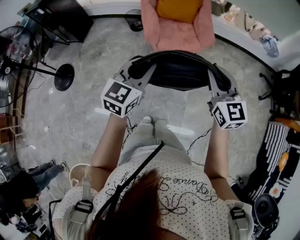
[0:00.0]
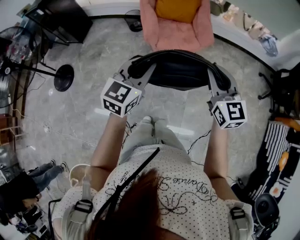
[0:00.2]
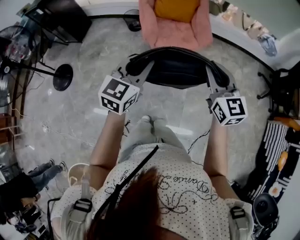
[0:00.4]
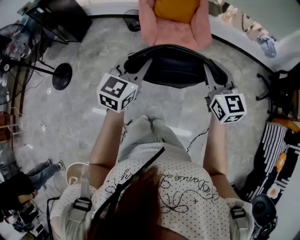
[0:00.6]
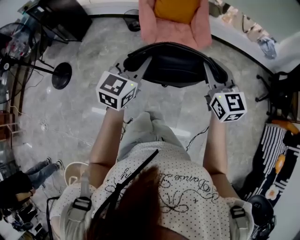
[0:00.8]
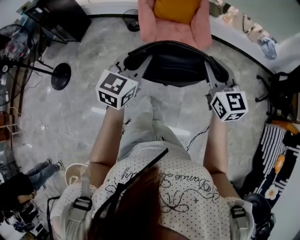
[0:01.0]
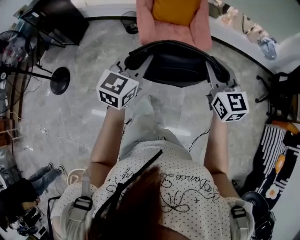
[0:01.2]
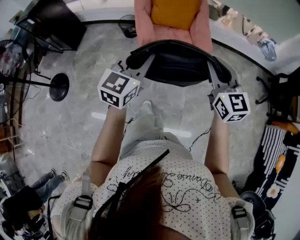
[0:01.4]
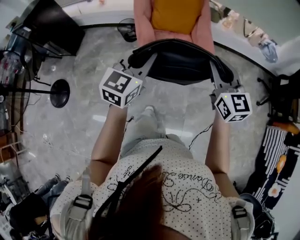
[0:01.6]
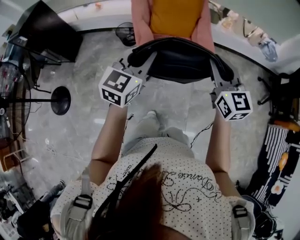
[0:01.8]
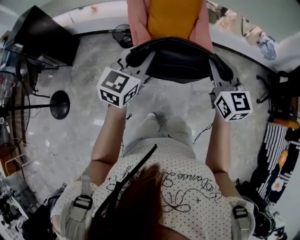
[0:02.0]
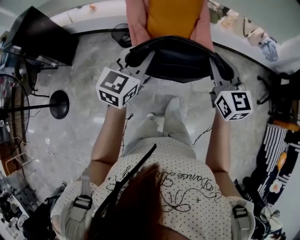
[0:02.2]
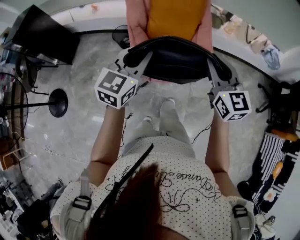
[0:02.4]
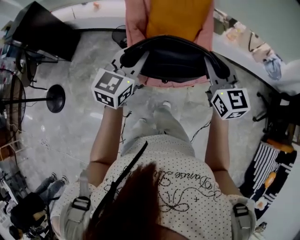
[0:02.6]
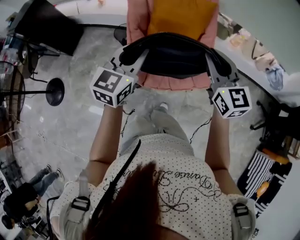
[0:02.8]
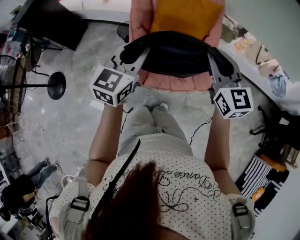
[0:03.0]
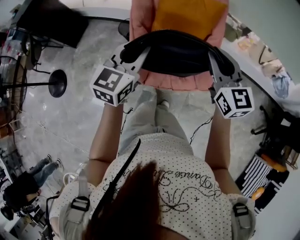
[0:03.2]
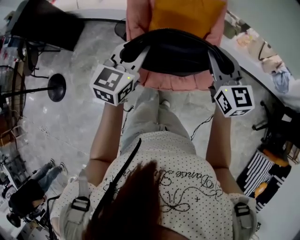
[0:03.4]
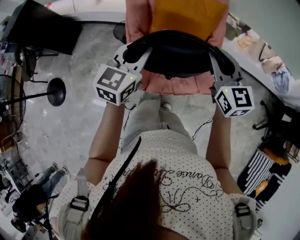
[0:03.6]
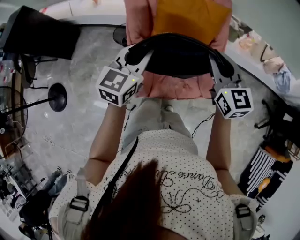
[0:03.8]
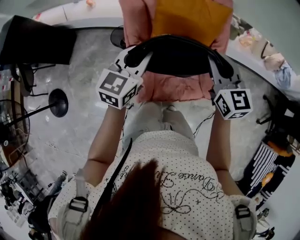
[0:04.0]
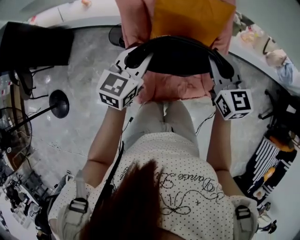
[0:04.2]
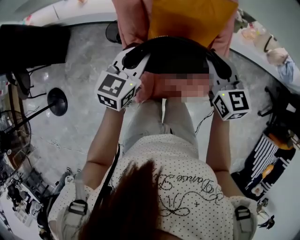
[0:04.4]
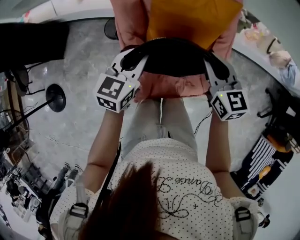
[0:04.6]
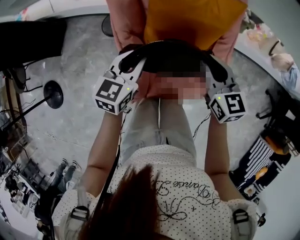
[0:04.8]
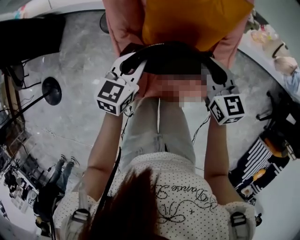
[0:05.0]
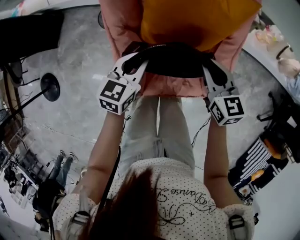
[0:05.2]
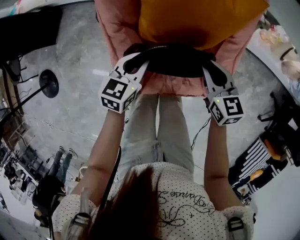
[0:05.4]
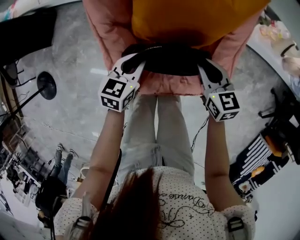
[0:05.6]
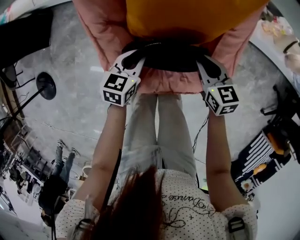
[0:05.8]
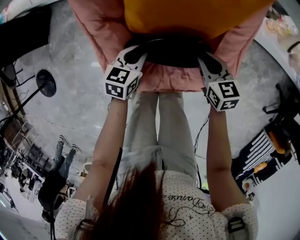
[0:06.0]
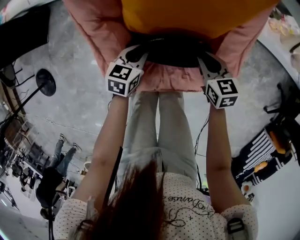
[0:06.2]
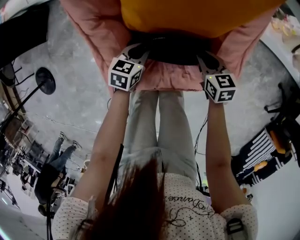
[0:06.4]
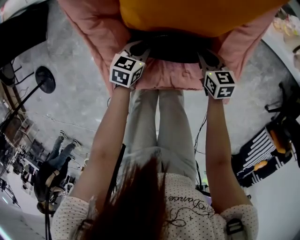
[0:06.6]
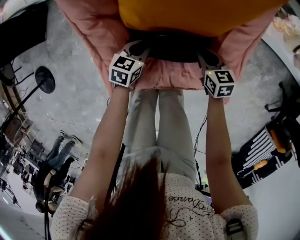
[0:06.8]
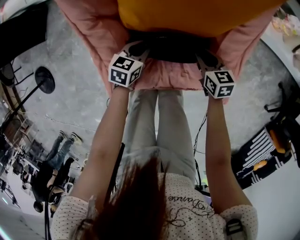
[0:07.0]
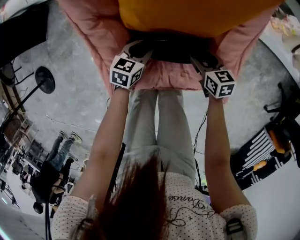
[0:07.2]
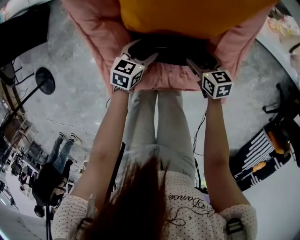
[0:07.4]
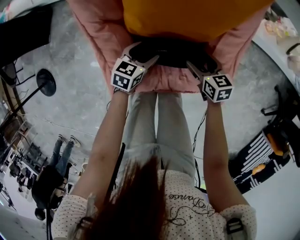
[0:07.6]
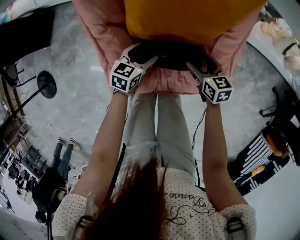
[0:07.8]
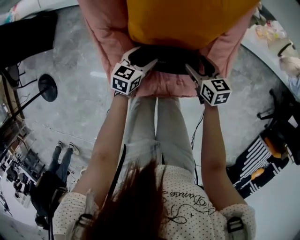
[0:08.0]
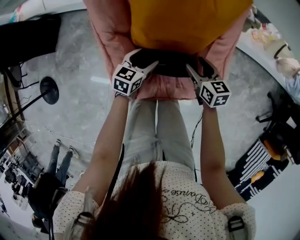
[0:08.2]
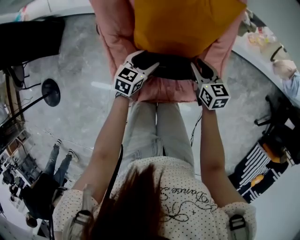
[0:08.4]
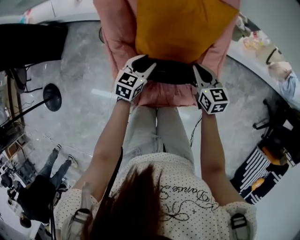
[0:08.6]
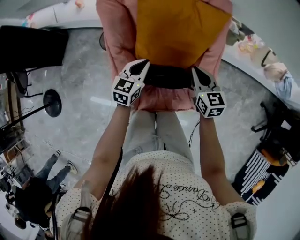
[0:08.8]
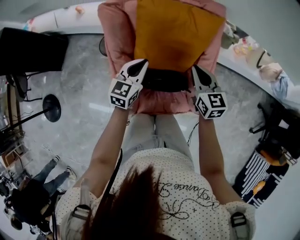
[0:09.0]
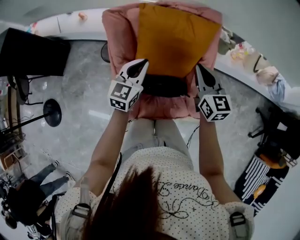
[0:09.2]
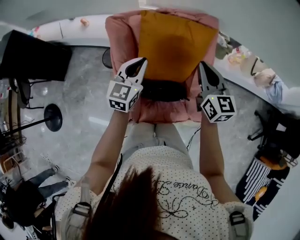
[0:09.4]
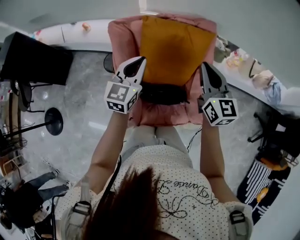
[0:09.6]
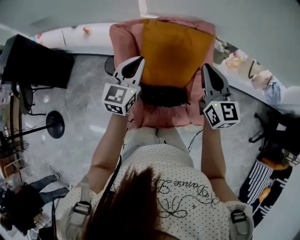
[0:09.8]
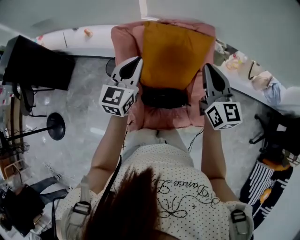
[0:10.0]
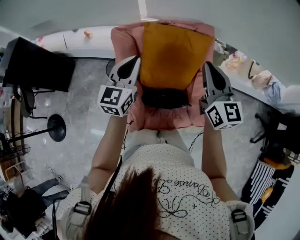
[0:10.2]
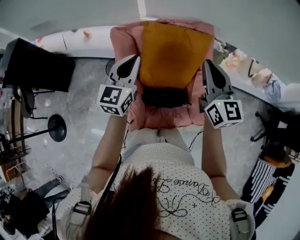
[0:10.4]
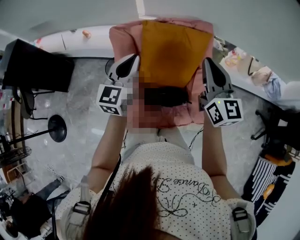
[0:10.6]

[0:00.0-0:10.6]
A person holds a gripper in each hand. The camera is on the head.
0.0 to 1.6 s: Both grippers move forward, roughly 20 cm.
1.6 to 3.0 s: Both grippers travel together forward, approximately 30 cm.
3.0 to 4.6 s: The two grippers go some 25 cm forward and downward.
4.6 to 6.0 s: The two grippers go roughly 30 cm downward. The left gripper rotates about 20 degrees. The right gripper changes its angle by some 20 degrees.
6.0 to 7.6 s: The left gripper opens up; the right gripper shifts roughly 5 cm downward, and opens its fingers.
7.6 to 9.0 s: Both grippers move upward, some 30 cm. The left gripper rotates some 30 degrees, and closes up; the right gripper changes its angle by approximately 30 degrees, and closes up.
9.0 to 10.6 s: The two grippers go some 20 cm upward. The right gripper changes its angle by roughly 20 degrees.

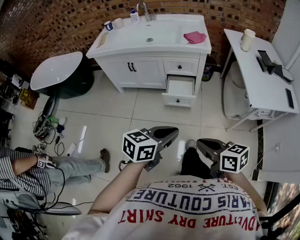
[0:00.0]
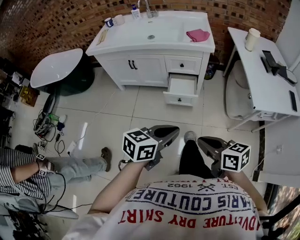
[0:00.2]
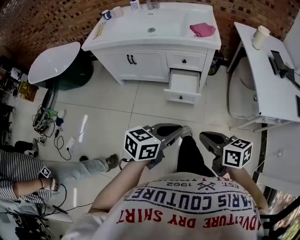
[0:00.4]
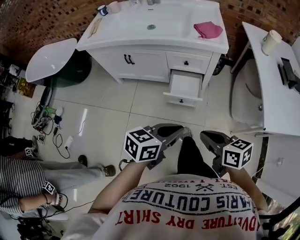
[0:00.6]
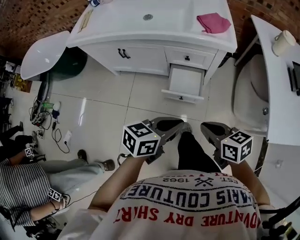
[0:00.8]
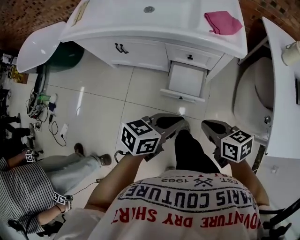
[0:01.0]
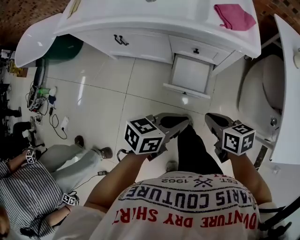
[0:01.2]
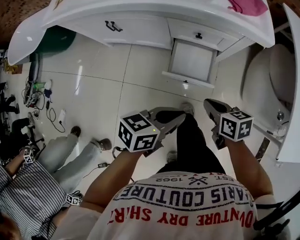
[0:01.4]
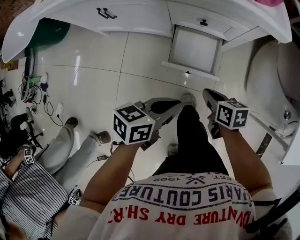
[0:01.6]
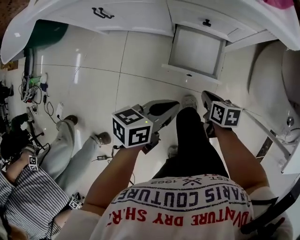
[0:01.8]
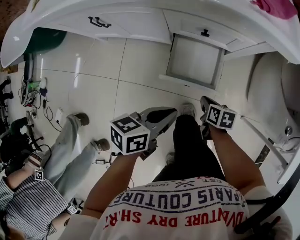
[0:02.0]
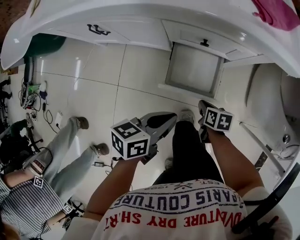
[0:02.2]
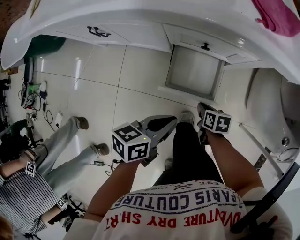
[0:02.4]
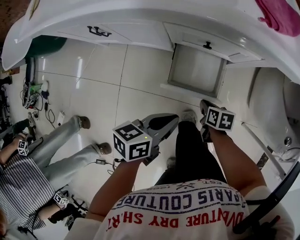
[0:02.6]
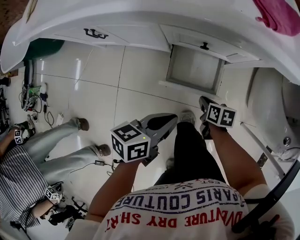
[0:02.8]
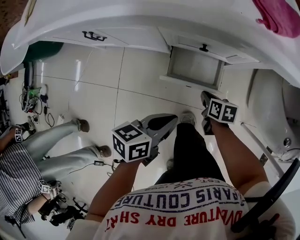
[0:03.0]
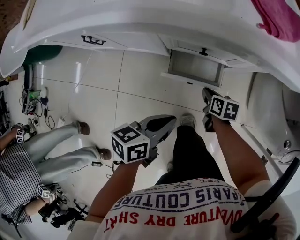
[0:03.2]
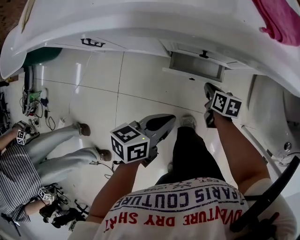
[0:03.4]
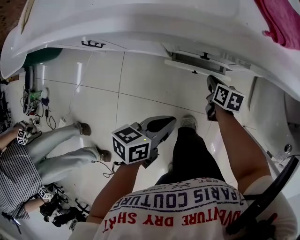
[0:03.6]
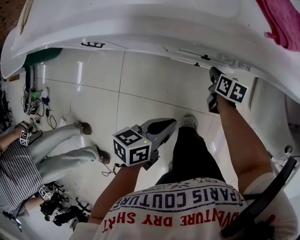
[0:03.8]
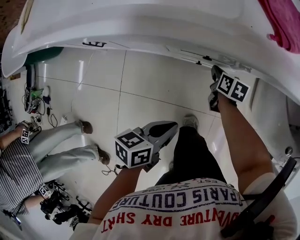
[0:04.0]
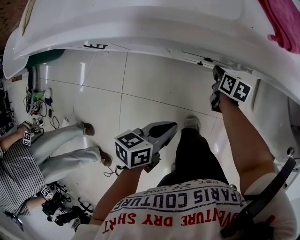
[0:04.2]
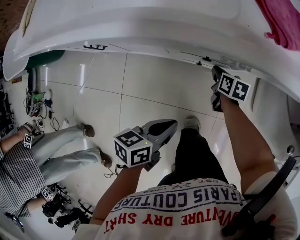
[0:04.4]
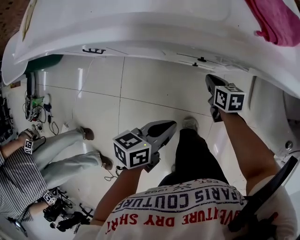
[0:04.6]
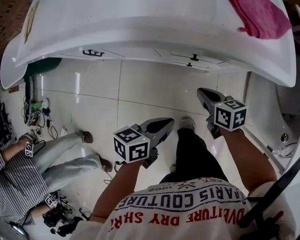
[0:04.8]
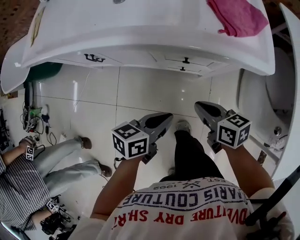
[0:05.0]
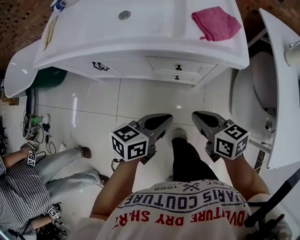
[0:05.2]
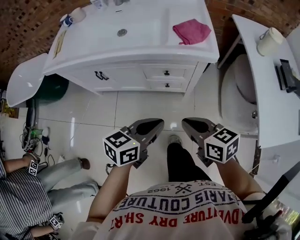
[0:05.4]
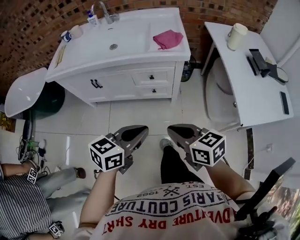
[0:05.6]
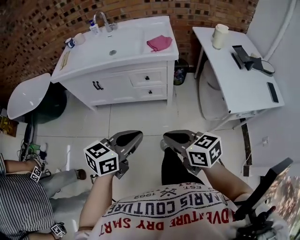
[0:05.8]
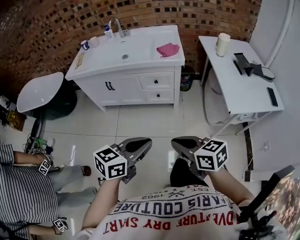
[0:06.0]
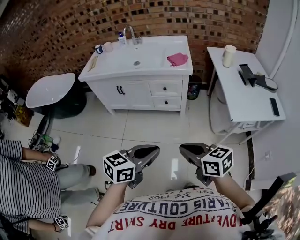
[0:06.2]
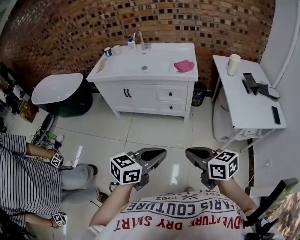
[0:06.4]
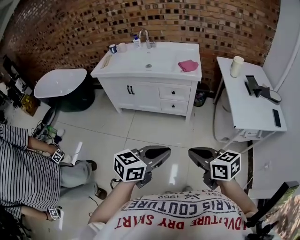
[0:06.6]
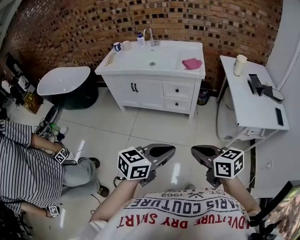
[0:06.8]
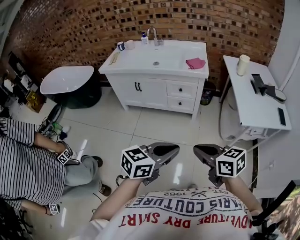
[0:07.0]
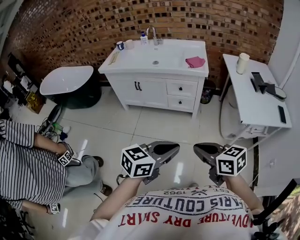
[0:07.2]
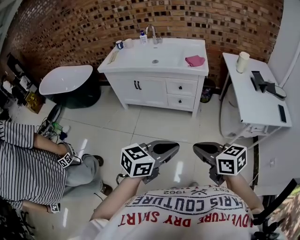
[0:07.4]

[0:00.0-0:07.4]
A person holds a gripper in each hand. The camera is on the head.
0.0 to 1.4 s: The two grippers go roughly 40 cm forward and downward. The right gripper turns by roughly 20 degrees. The left gripper changes its angle by some 20 degrees.
1.4 to 3.0 s: The left gripper goes about 15 cm downward and forward. Meanwhile the right gripper shifts approximately 25 cm downward and forward.
3.0 to 4.4 s: The right gripper shifts roughly 15 cm forward.
4.4 to 6.0 s: Both grippers are carried backward, roughly 50 cm. Both grippers travel together upward, some 50 cm. The left gripper changes its angle by roughly 40 degrees; the right gripper rotates about 40 degrees.
6.0 to 7.4 s: The two grippers go roughly 10 cm backward.

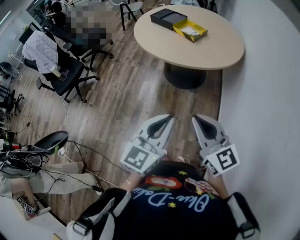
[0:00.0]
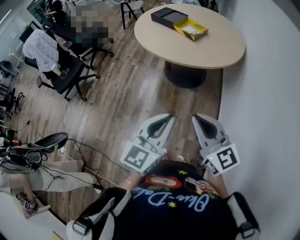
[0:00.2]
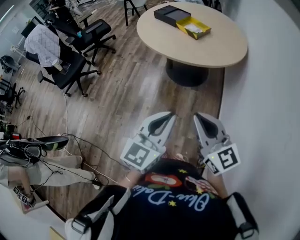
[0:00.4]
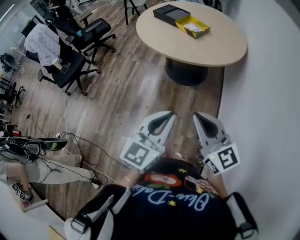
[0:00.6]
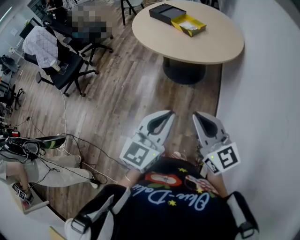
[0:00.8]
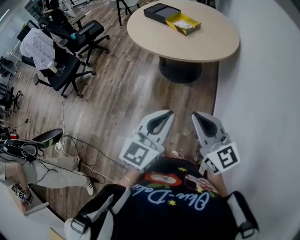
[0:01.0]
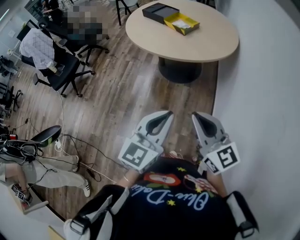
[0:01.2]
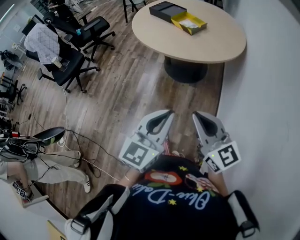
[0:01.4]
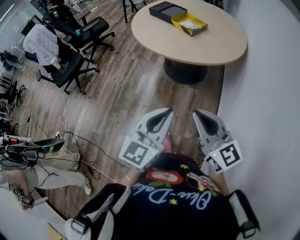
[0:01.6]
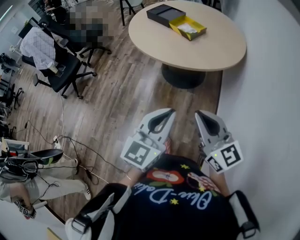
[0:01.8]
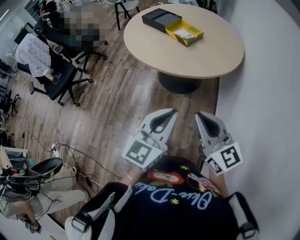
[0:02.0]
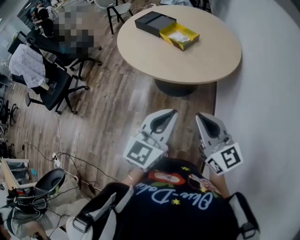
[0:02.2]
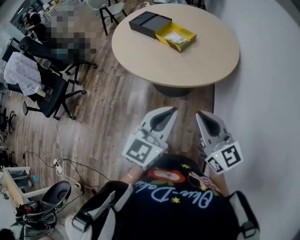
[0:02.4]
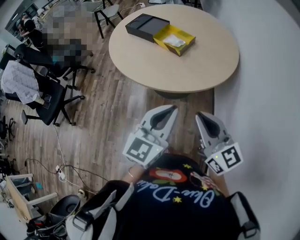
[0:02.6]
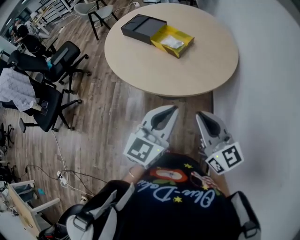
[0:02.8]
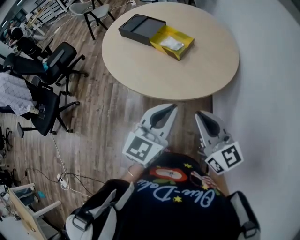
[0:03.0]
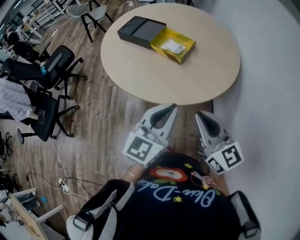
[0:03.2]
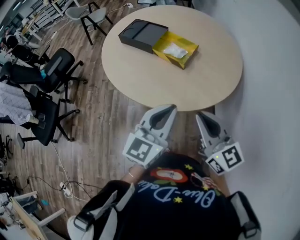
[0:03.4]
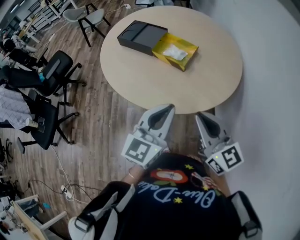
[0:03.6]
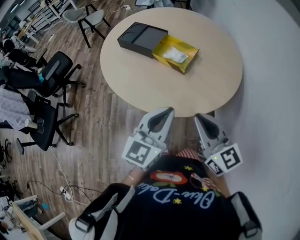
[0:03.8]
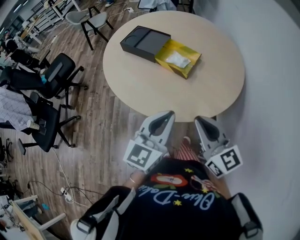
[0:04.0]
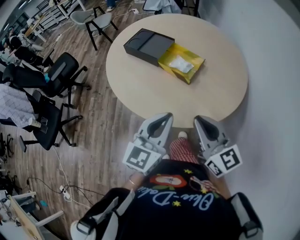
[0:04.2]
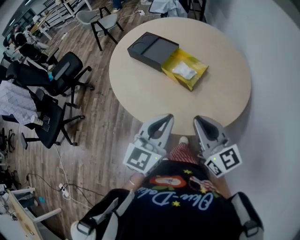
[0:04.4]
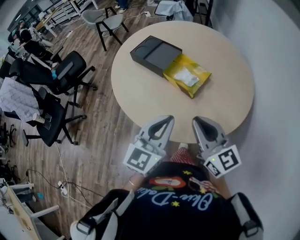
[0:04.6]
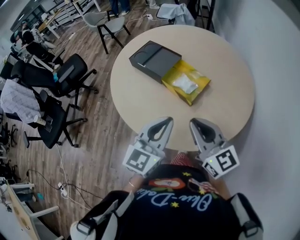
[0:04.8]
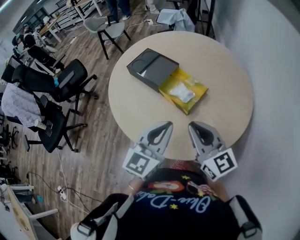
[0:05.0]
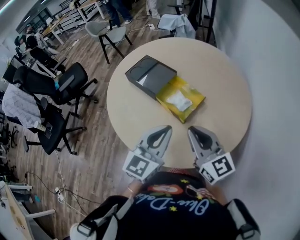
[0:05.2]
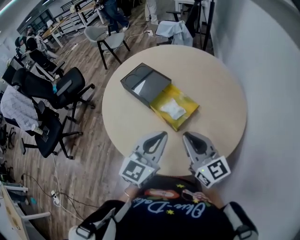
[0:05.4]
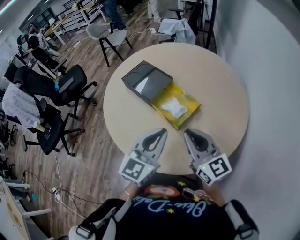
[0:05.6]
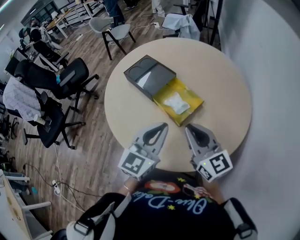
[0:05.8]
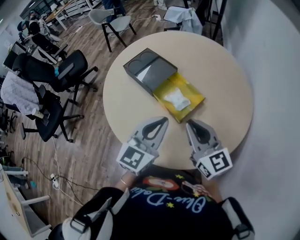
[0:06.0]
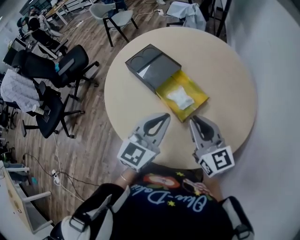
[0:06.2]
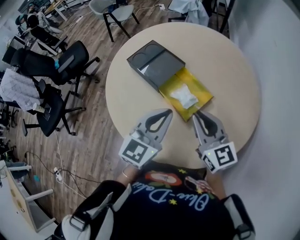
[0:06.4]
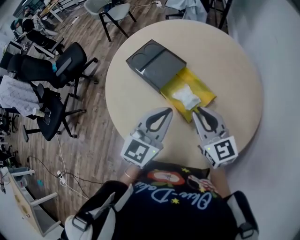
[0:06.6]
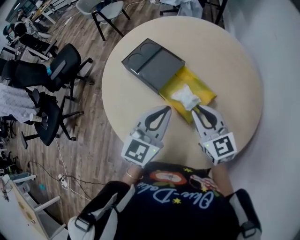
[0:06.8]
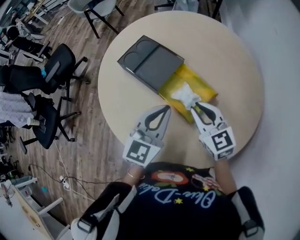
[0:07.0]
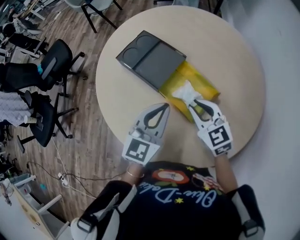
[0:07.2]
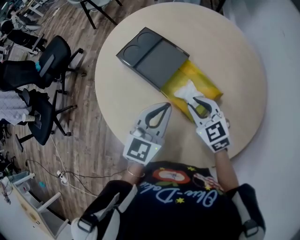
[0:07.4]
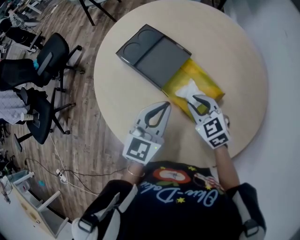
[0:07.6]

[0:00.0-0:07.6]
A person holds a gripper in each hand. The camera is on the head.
0.0 to 1.6 s: The two grippers go approximately 5 cm to the right.
1.6 to 3.0 s: Both grippers travel together forward, some 30 cm.
3.0 to 4.6 s: Both grippers travel together forward, some 20 cm.
4.6 to 6.0 s: The two grippers go about 15 cm forward and to the right.
6.0 to 7.6 s: The right gripper travels downward and forward by roughly 25 cm, and points its fingers about 40 degrees further downward. Meanwhile the left gripper is displaced forward, downward and to the left by about 20 cm.
